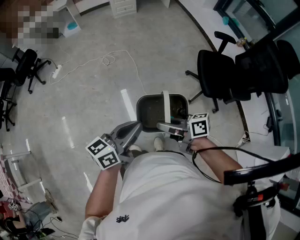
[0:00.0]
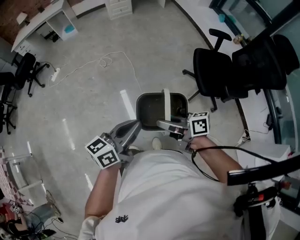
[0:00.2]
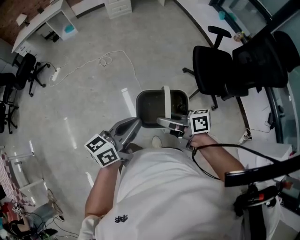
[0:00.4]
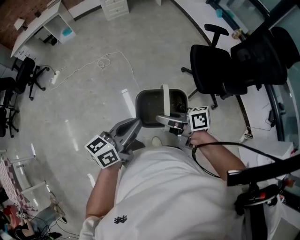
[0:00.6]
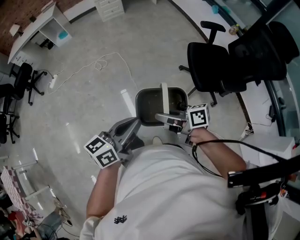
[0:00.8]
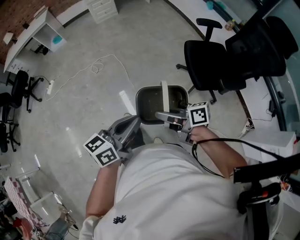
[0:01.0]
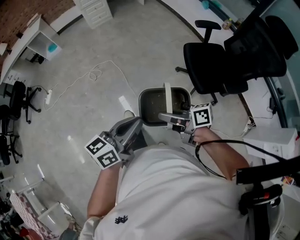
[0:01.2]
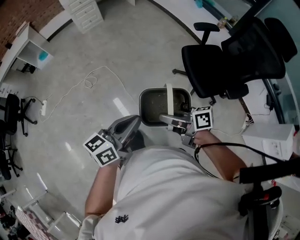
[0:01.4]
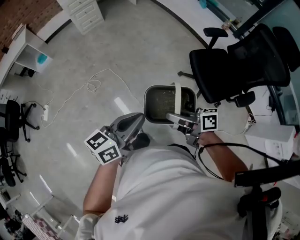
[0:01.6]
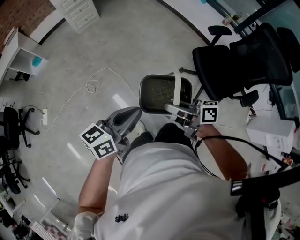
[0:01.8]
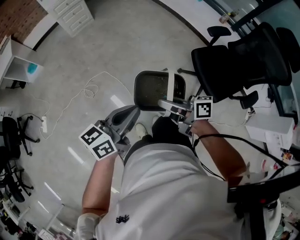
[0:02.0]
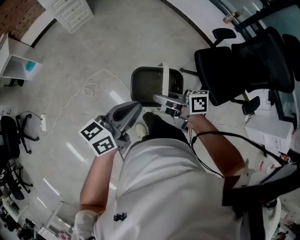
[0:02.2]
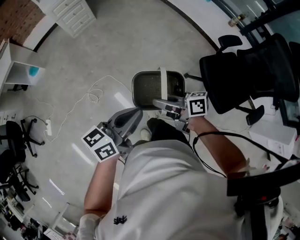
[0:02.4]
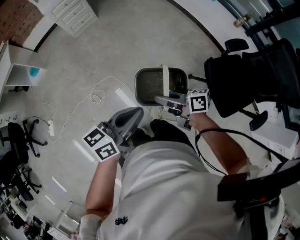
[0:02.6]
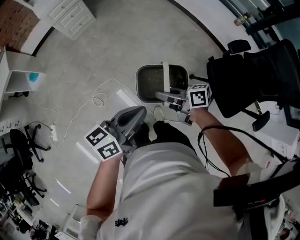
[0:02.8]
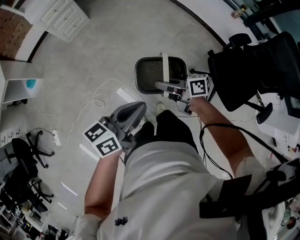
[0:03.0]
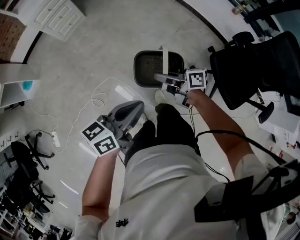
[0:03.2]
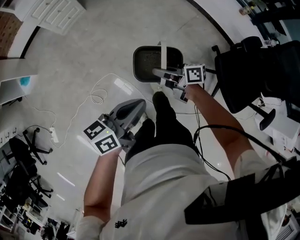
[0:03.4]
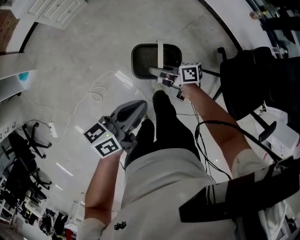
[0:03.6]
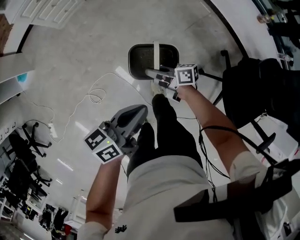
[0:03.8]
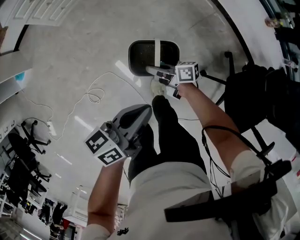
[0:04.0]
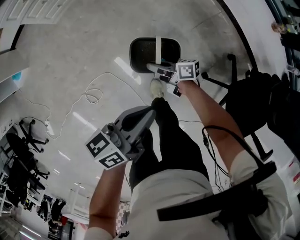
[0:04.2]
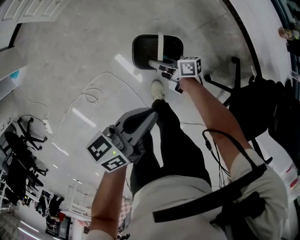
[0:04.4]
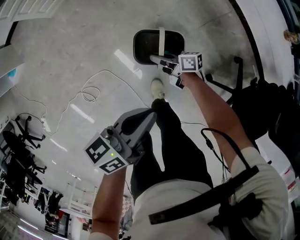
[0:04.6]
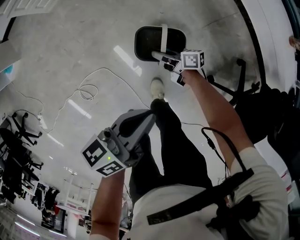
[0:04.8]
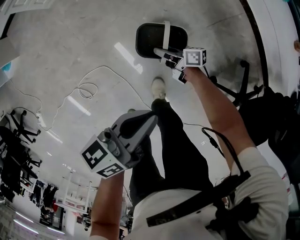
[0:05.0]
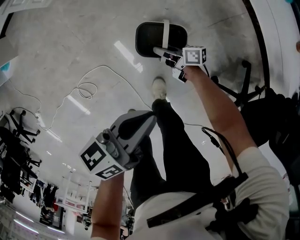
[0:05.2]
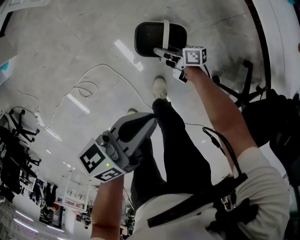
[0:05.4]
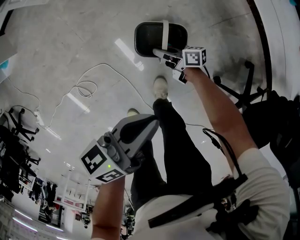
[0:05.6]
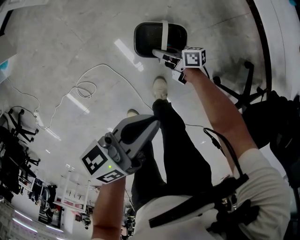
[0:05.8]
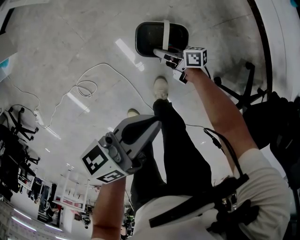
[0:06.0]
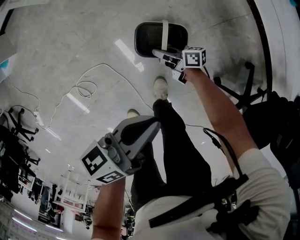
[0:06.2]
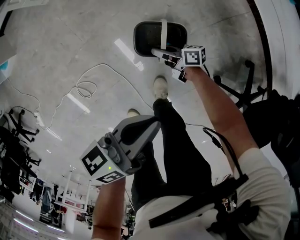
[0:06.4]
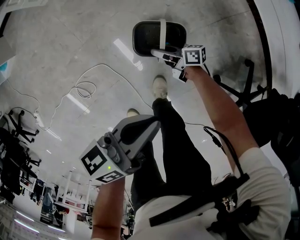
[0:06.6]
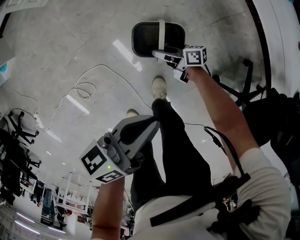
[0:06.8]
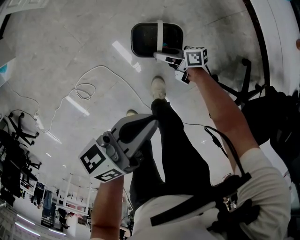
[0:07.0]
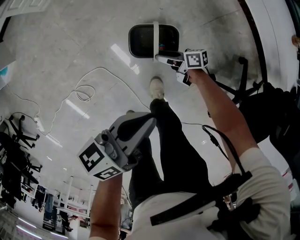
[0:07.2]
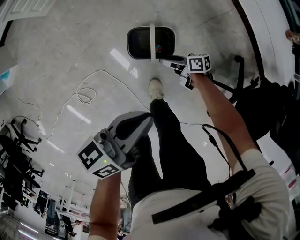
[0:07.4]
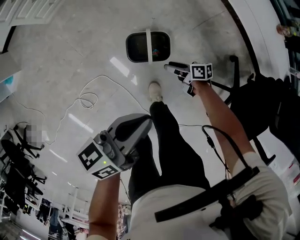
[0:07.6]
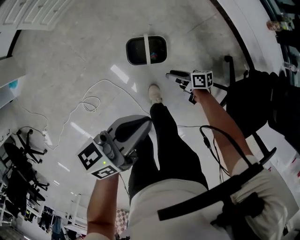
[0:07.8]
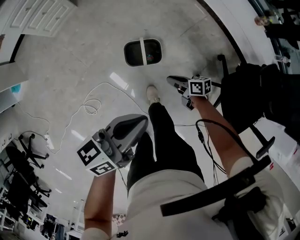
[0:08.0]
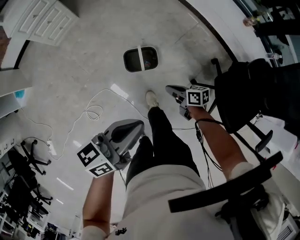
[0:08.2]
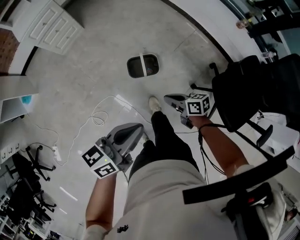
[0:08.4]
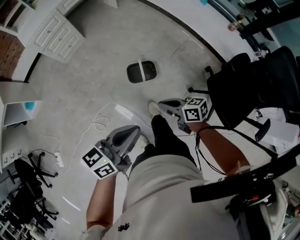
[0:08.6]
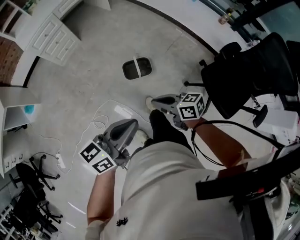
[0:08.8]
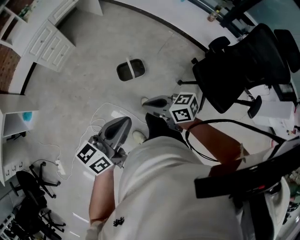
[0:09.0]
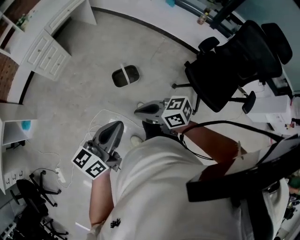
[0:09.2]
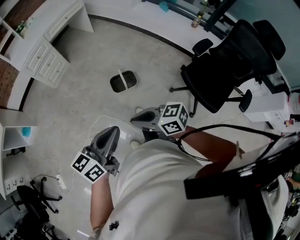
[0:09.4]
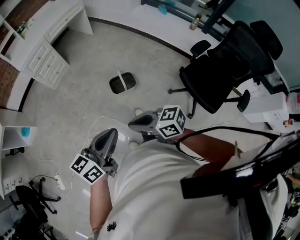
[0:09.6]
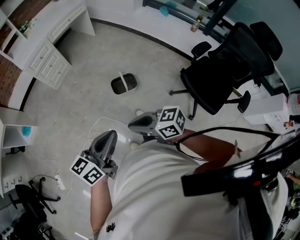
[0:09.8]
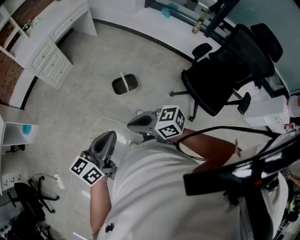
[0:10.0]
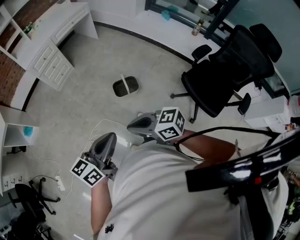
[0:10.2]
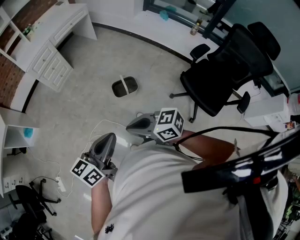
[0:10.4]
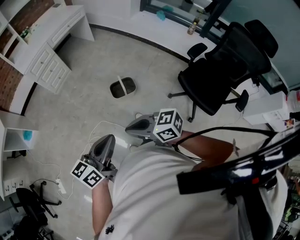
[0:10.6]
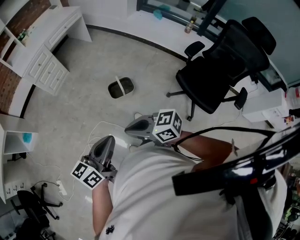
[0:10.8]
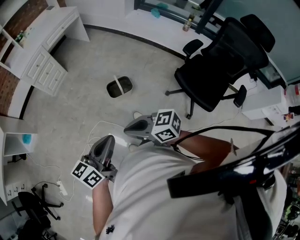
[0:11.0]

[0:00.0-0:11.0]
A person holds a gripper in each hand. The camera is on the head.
0:00.0 to 0:01.6: The two grippers go about 30 cm forward. The right gripper turns by approximately 20 degrees.
0:01.6 to 0:03.2: The two grippers travel together, forward, about 50 cm.
0:03.2 to 0:04.8: The right gripper shifts approximately 50 cm downward and forward; the left gripper moves forward and downward, roughly 35 cm, and swivels roughly 20 degrees.
0:04.8 to 0:06.2: Both grippers travel together downward, approximately 5 cm.
0:06.2 to 0:07.8: The left gripper moves upward, about 15 cm. The right gripper ends up roughly 20 cm from where it was, and opens its fingers.
0:07.8 to 0:09.4: The left gripper goes approximately 30 cm backward and upward. Meanwhile the right gripper heads upward and backward, covering roughly 60 cm, turns by some 40 degrees, and closes up.
0:09.4 to 0:11.0: The right gripper moves backward, some 5 cm, while the left gripper moves some 5 cm.

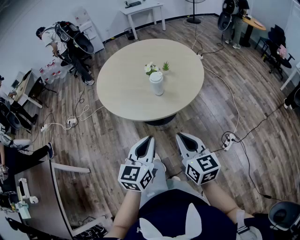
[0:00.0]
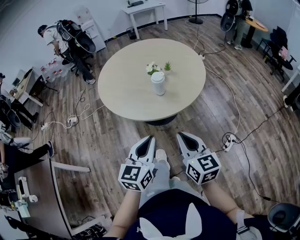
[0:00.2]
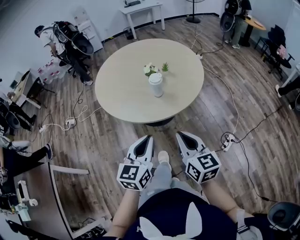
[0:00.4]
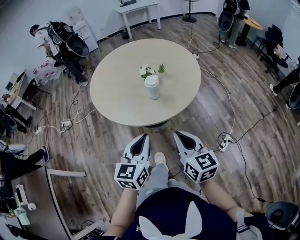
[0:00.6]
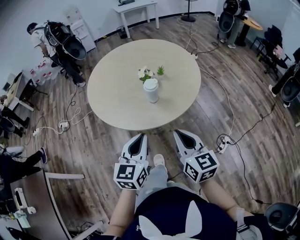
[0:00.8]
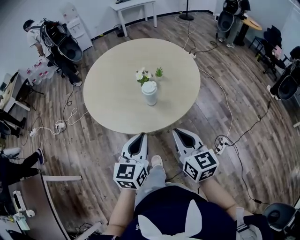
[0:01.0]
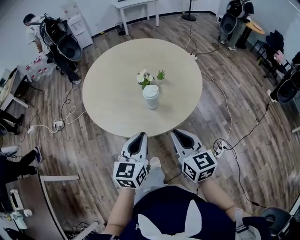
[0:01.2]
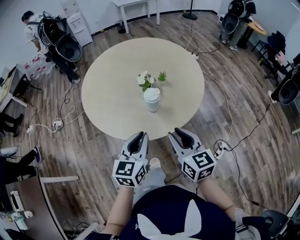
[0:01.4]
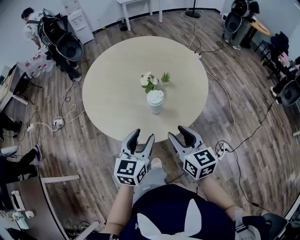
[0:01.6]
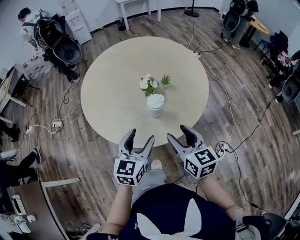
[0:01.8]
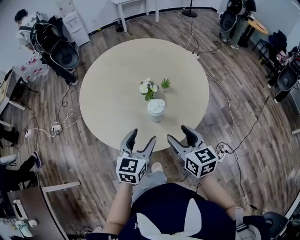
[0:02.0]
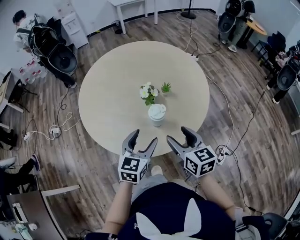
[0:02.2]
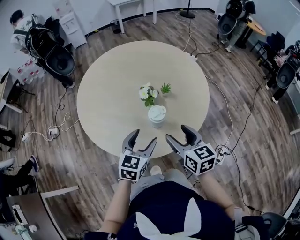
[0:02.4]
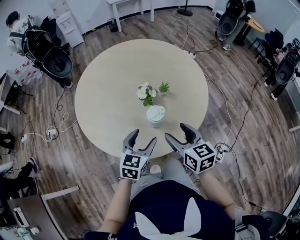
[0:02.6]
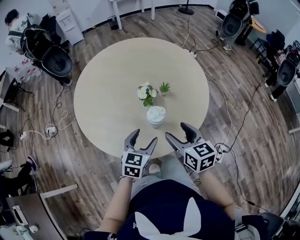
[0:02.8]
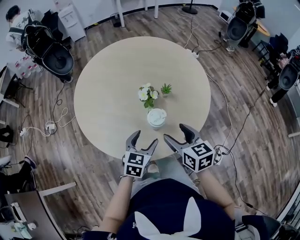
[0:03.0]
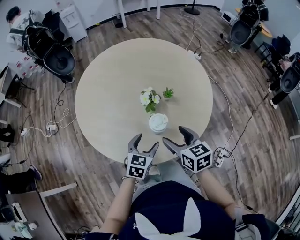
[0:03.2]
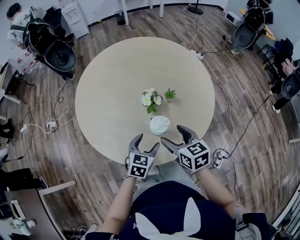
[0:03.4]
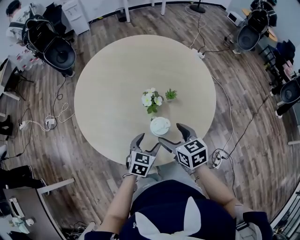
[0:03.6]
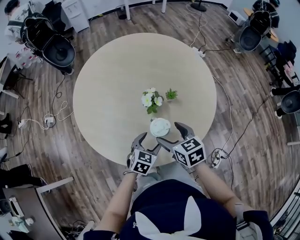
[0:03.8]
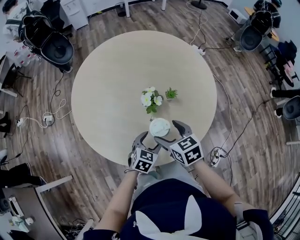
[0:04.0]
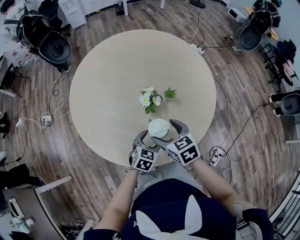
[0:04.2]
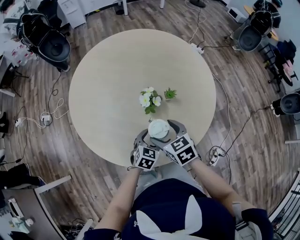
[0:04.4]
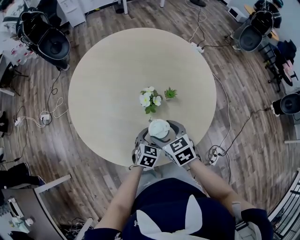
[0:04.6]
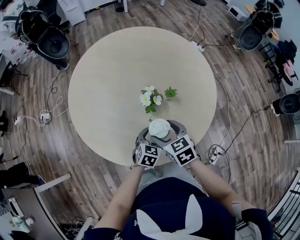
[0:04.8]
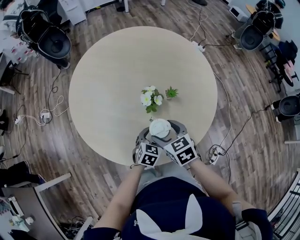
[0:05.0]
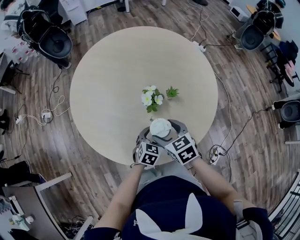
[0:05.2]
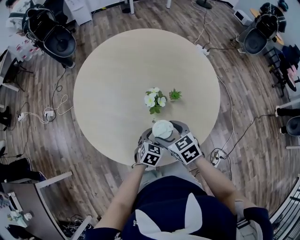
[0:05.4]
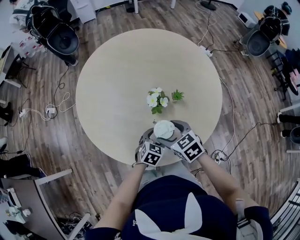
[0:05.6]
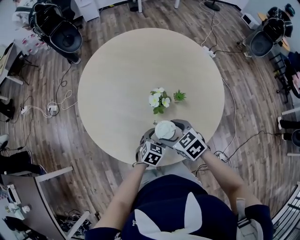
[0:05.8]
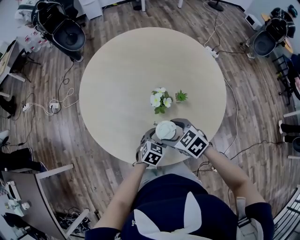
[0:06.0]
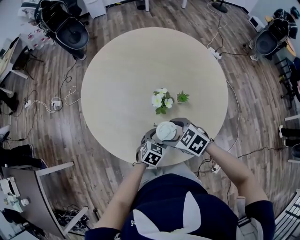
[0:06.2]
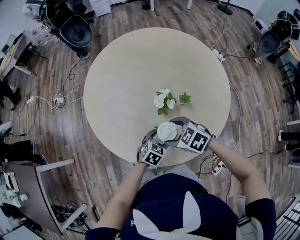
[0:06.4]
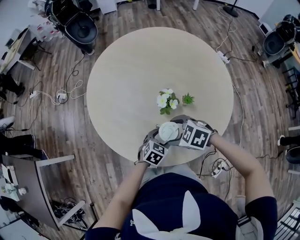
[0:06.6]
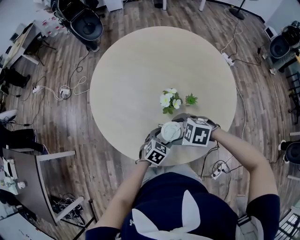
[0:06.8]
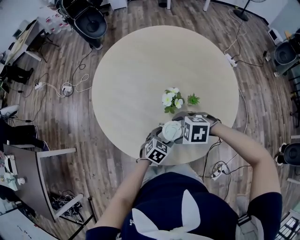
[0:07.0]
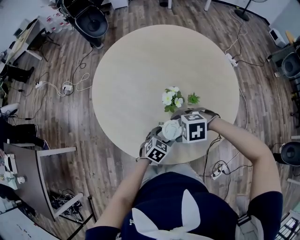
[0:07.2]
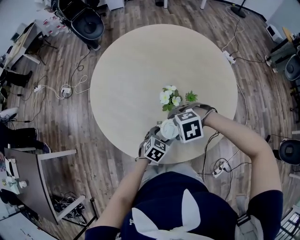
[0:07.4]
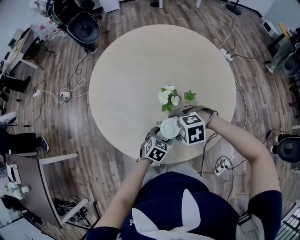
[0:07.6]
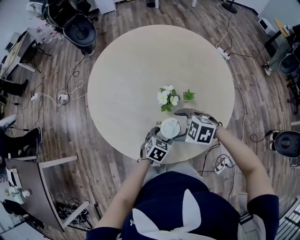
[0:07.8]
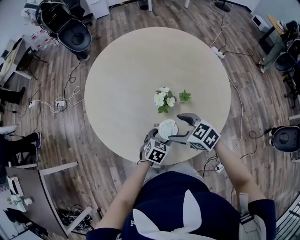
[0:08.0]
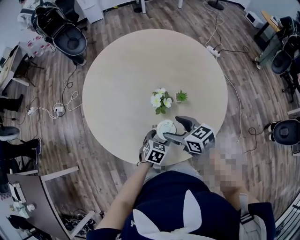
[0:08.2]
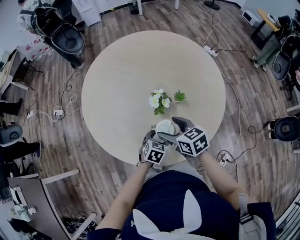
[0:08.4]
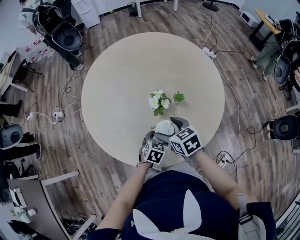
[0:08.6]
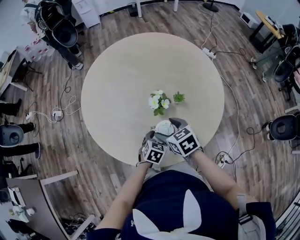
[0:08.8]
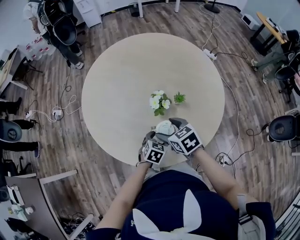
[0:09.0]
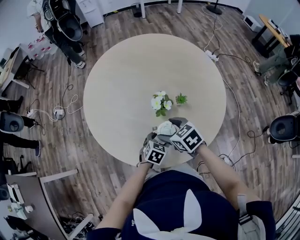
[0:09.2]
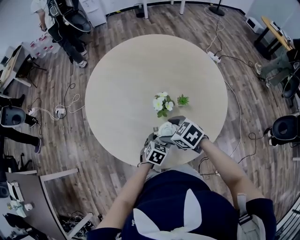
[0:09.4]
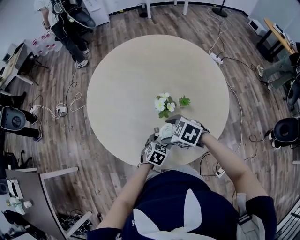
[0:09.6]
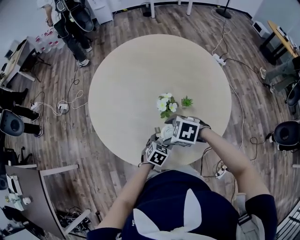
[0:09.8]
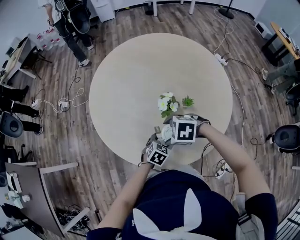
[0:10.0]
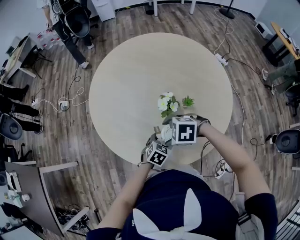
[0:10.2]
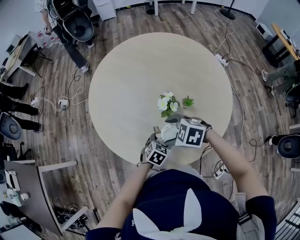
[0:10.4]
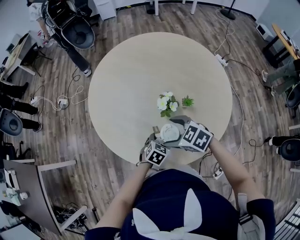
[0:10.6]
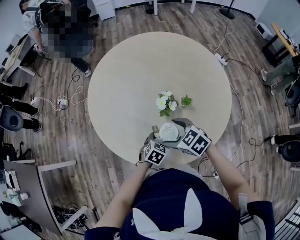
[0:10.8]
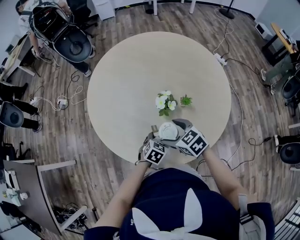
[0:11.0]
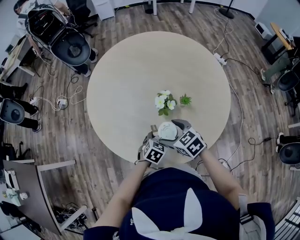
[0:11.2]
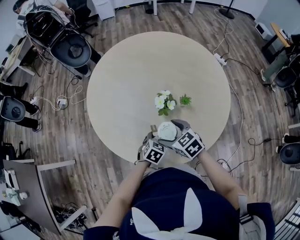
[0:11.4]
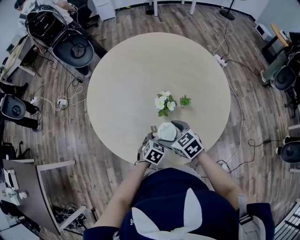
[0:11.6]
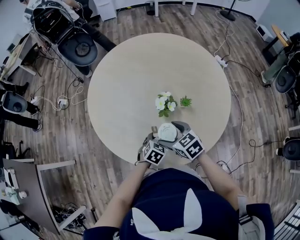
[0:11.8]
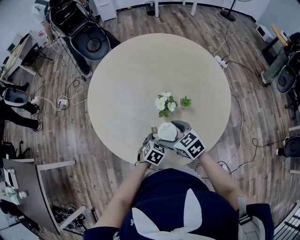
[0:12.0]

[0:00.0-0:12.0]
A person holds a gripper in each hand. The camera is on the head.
0:00.0 to 0:01.6: The grippers both shift forward by about 20 cm. The left gripper opens its fingers; the right gripper opens.
0:01.6 to 0:03.0: The two grippers go roughly 15 cm forward and downward.
0:03.0 to 0:04.4: The grippers both shift downward and forward by some 10 cm. The right gripper changes its angle by some 20 degrees.
0:04.4 to 0:06.0: The right gripper swivels about 30 degrees.
0:06.0 to 0:07.6: The right gripper twists roughly 50 degrees counterclockwise, seen from behind.
0:07.6 to 0:09.0: The right gripper rolls clockwise, seen from behind, by some 60 degrees.
0:09.0 to 0:10.4: The right gripper changes its angle by roughly 50 degrees.
0:10.4 to 0:12.0: The right gripper rotates approximately 40 degrees.

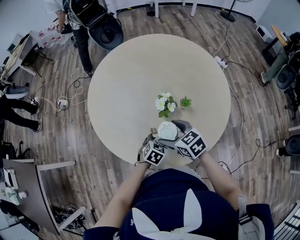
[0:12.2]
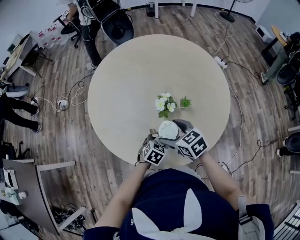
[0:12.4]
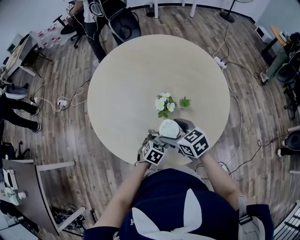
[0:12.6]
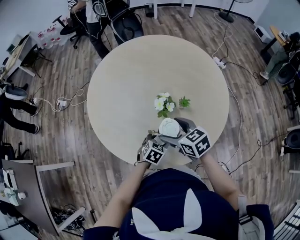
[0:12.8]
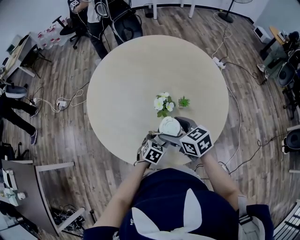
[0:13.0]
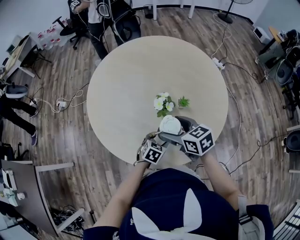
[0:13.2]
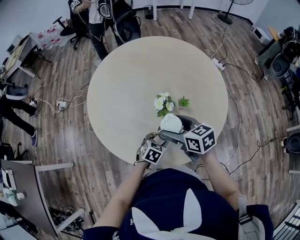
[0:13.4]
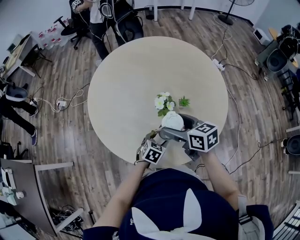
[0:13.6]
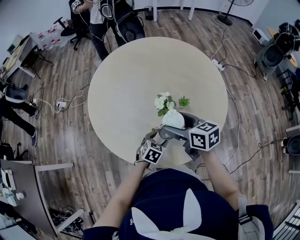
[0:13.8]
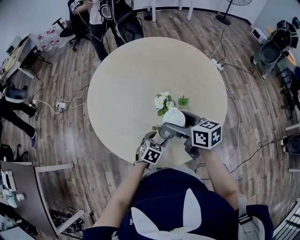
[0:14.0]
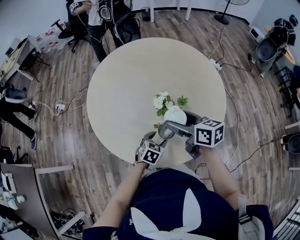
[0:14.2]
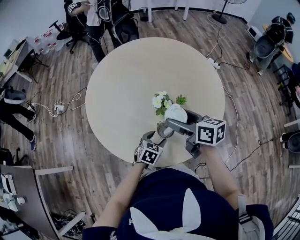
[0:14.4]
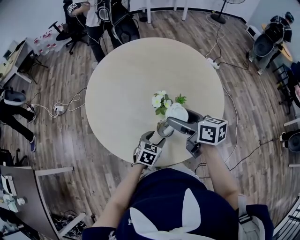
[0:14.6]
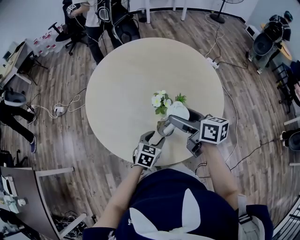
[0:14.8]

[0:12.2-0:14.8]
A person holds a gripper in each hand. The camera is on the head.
0:12.2 to 0:13.4: The right gripper moves upward, some 5 cm.
0:13.4 to 0:14.8: Both grippers move upward, roughly 5 cm. The right gripper rotates about 30 degrees.
